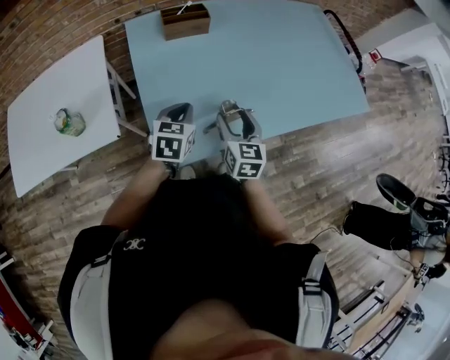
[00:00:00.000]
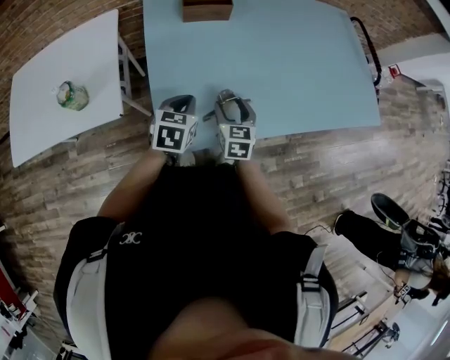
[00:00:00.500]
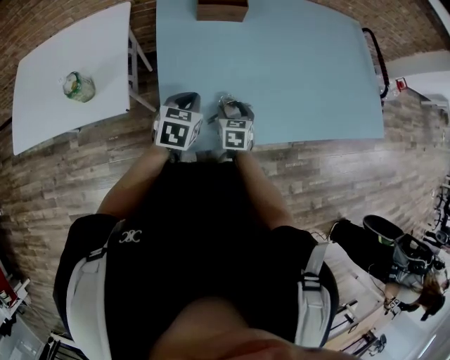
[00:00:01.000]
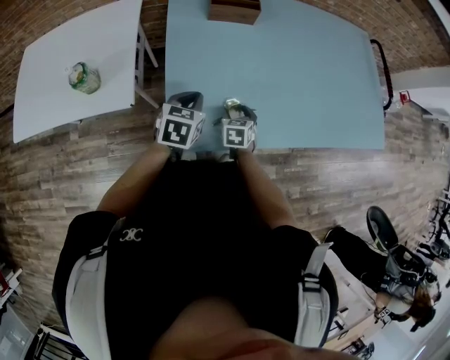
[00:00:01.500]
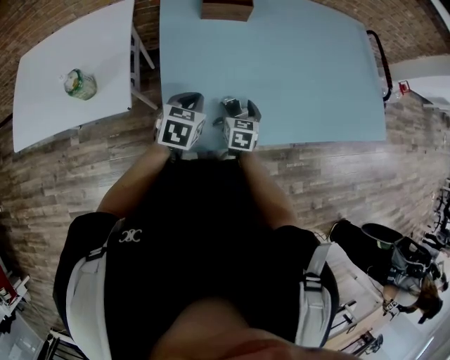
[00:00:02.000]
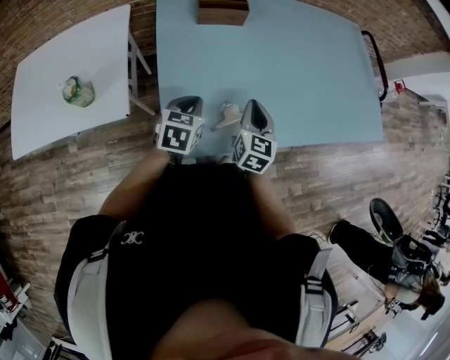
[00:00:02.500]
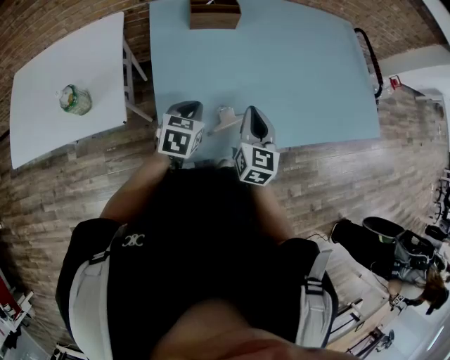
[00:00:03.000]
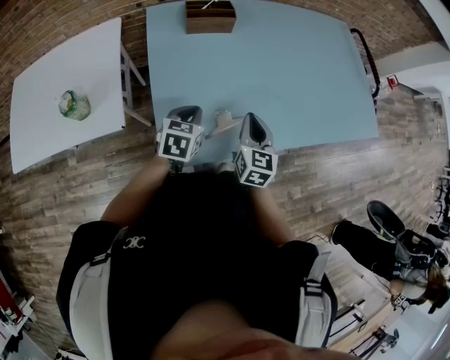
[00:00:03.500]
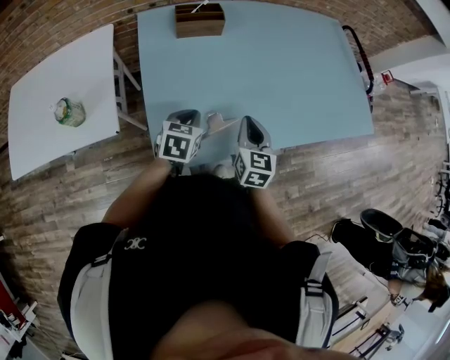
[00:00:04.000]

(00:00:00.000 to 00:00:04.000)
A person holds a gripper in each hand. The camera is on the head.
00:00:00.000 - 00:00:02.000: The right gripper heads downward, covering approximately 15 cm, while the left gripper moves roughly 5 cm.
00:00:02.000 - 00:00:04.000: The right gripper shifts roughly 15 cm upward and to the right, and closes up.

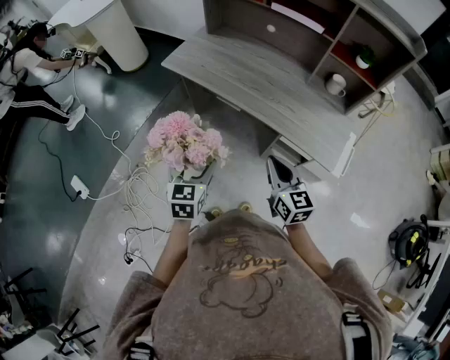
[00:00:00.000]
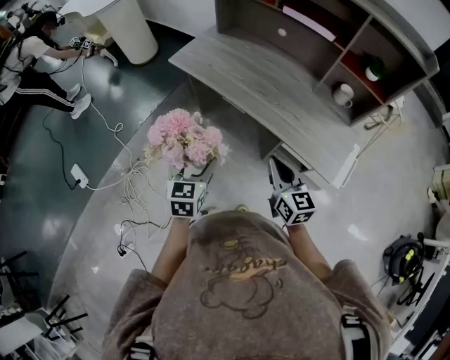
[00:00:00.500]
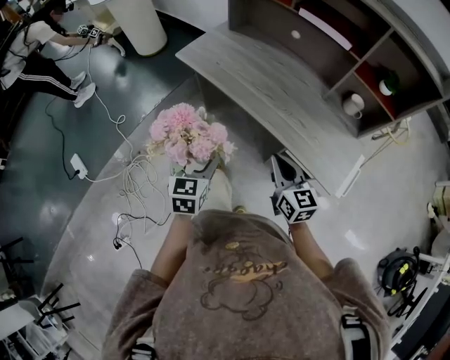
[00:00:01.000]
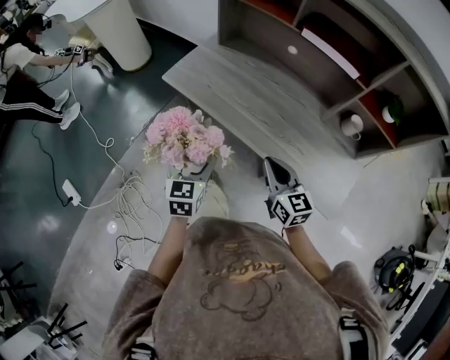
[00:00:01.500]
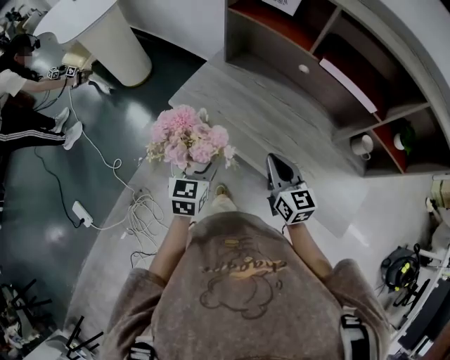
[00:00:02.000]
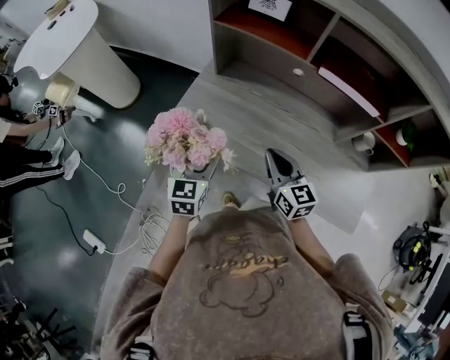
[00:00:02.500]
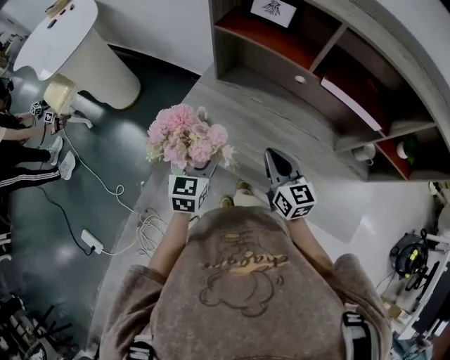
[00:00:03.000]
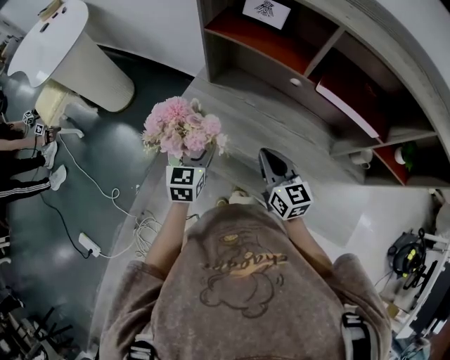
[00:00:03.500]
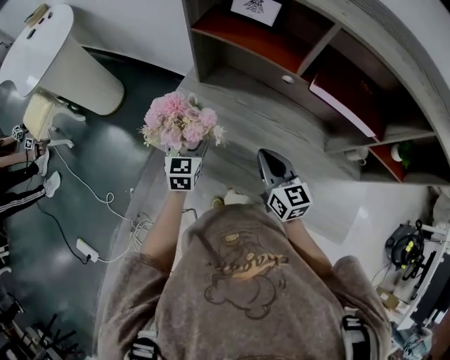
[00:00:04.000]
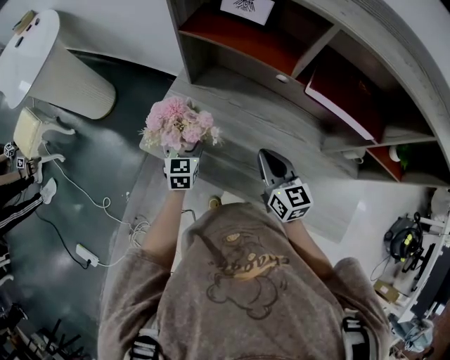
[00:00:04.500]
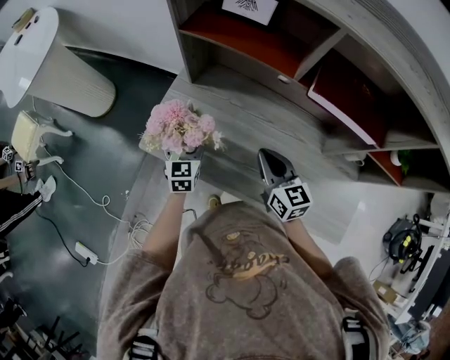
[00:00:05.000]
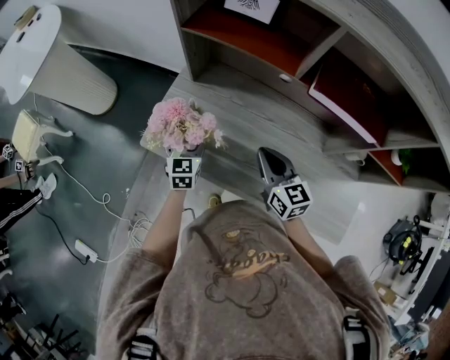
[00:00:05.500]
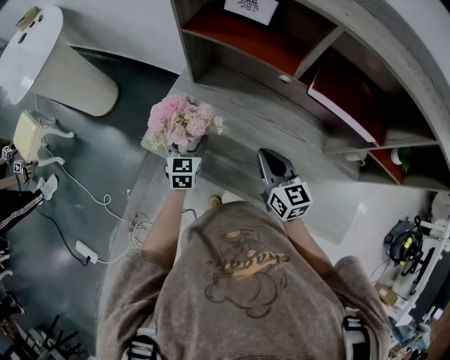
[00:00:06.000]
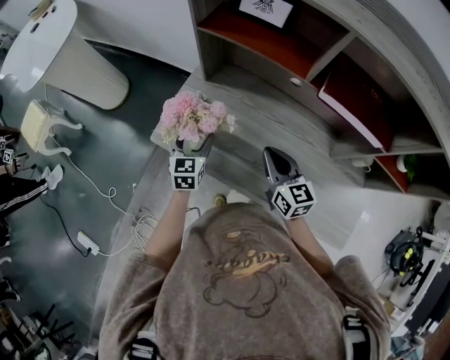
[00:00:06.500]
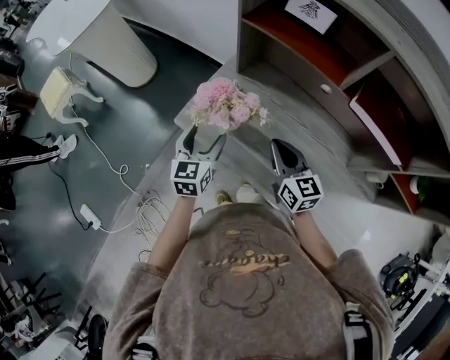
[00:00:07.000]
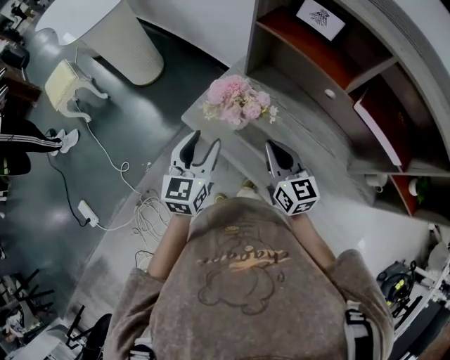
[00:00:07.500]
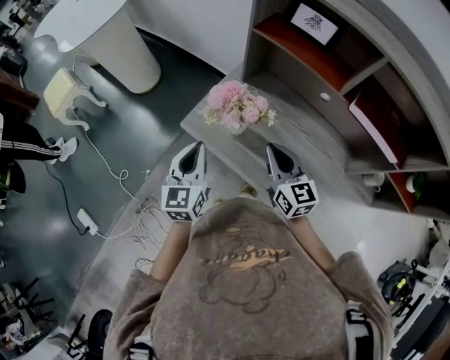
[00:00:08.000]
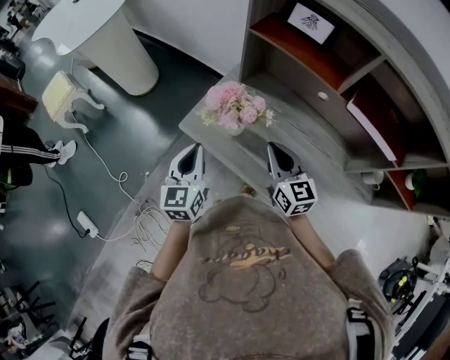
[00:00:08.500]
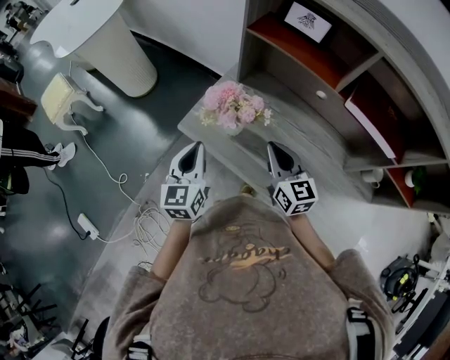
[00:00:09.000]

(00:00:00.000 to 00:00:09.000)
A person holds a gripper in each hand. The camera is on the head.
00:00:00.000 - 00:00:02.000: The grippers both shift forward by approximately 30 cm.
00:00:02.000 - 00:00:04.500: The right gripper goes approximately 15 cm forward; the left gripper heads forward, covering approximately 25 cm.
00:00:04.500 - 00:00:07.000: The left gripper is displaced upward, backward and to the left by about 10 cm, while the right gripper shifts about 5 cm to the left.
00:00:07.000 - 00:00:09.000: The left gripper travels upward, backward and to the left by about 10 cm, and closes up.

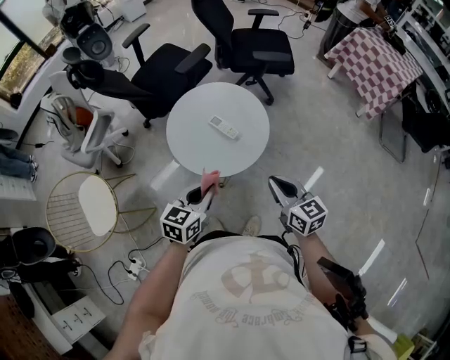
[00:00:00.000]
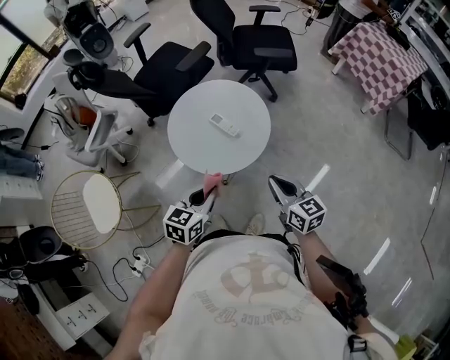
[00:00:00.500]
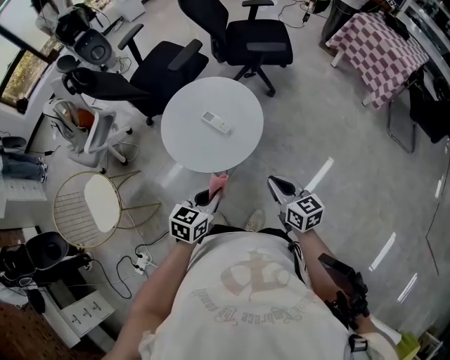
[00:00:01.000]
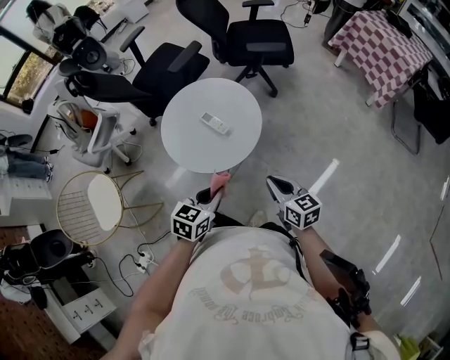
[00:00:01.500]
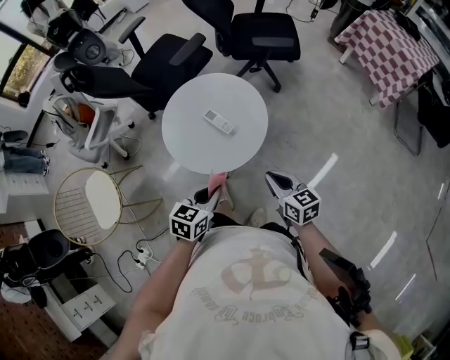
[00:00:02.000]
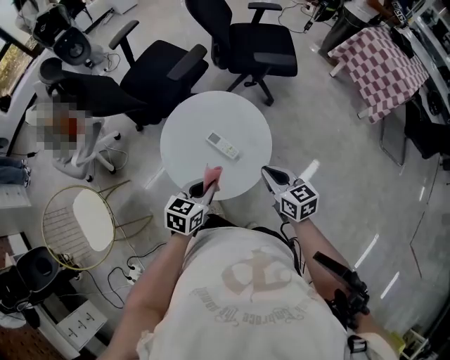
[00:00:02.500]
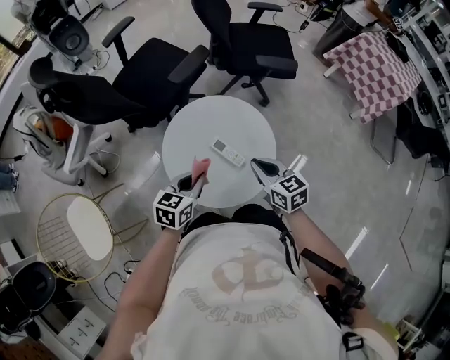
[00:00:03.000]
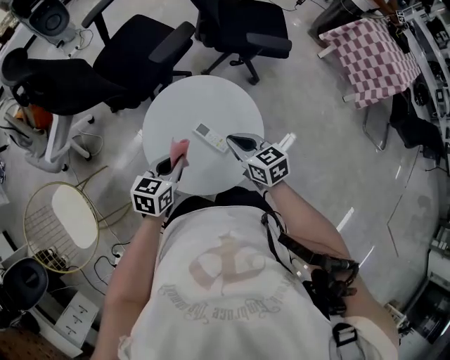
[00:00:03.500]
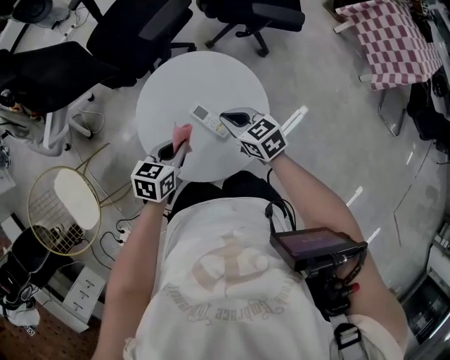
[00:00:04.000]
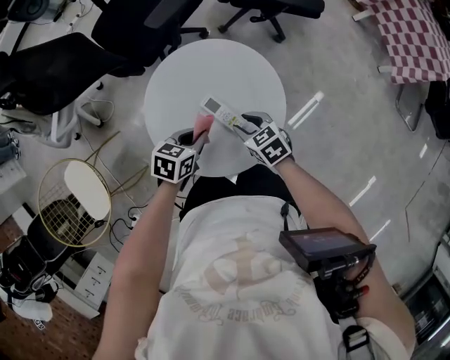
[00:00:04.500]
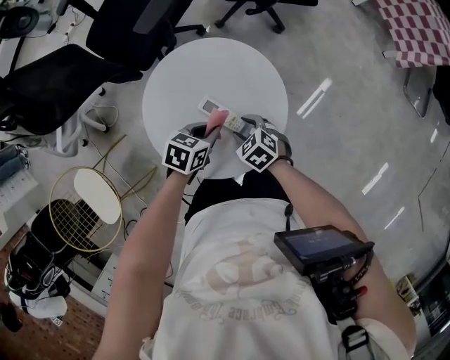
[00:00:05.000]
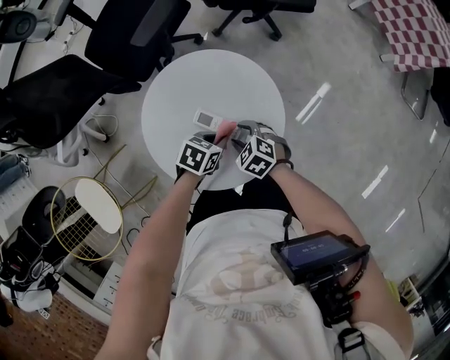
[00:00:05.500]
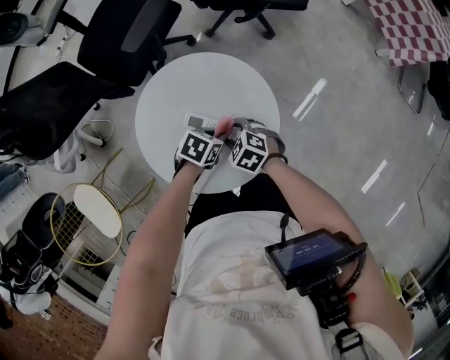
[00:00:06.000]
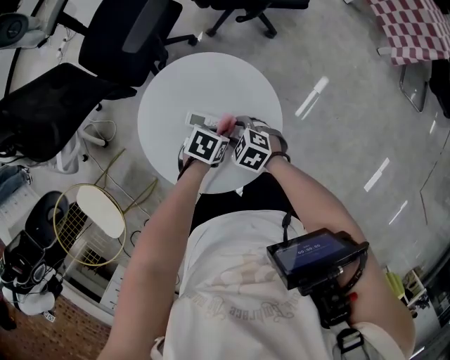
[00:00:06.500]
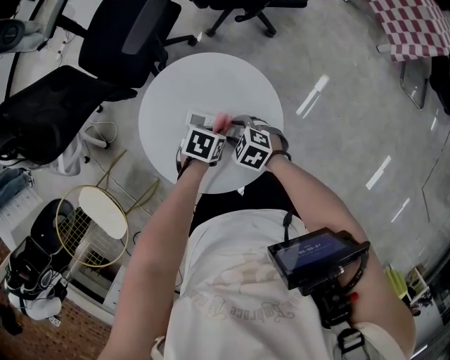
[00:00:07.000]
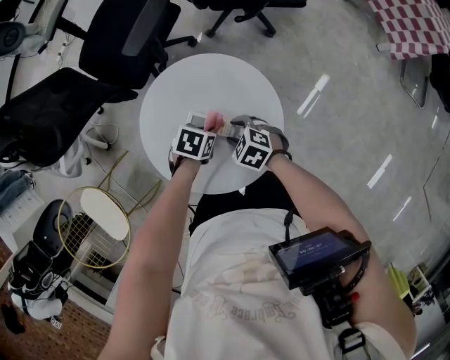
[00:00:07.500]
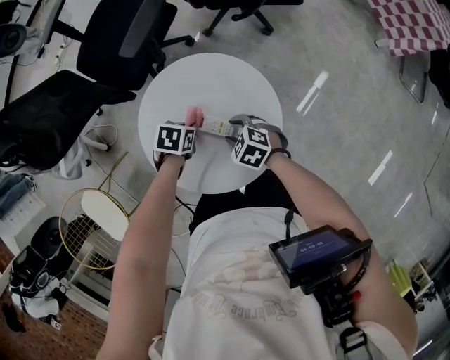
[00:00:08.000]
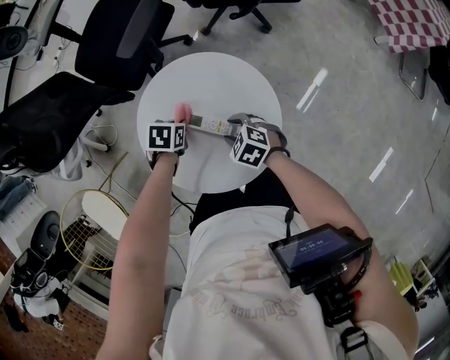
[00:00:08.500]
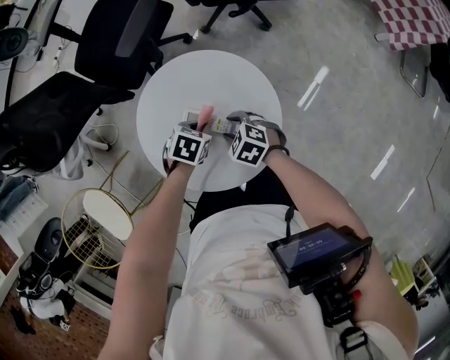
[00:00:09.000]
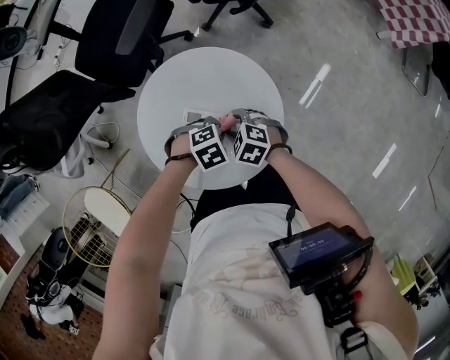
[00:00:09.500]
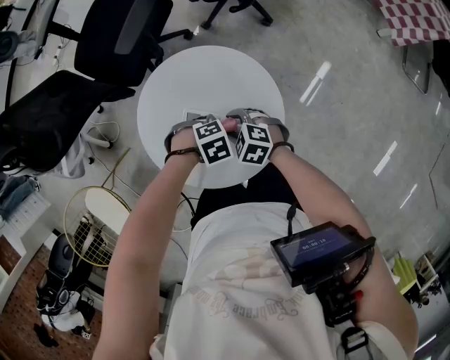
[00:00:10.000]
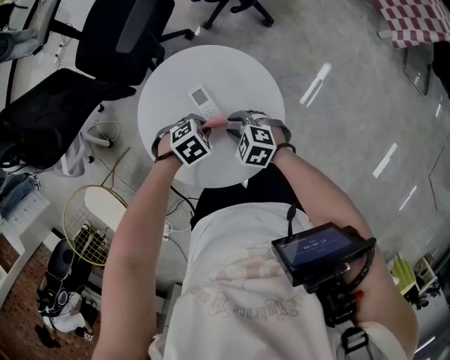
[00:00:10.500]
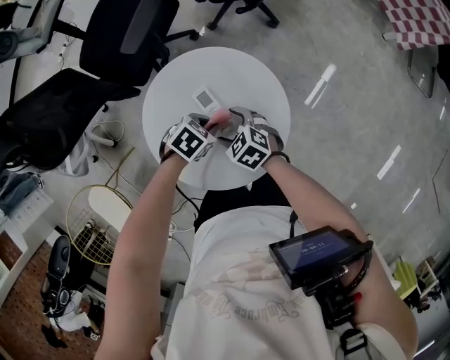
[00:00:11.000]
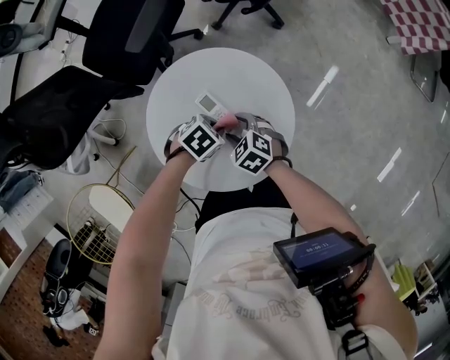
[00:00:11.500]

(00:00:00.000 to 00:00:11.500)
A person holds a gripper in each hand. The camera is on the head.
00:00:00.000 - 00:00:02.000: The right gripper is displaced downward by some 10 cm, while the left gripper is displaced to the right and downward by some 10 cm.
00:00:02.000 - 00:00:04.000: The grippers both shift forward and to the left by about 30 cm. The right gripper turns by approximately 20 degrees.
00:00:04.000 - 00:00:06.000: Both grippers move downward, some 15 cm. The left gripper swivels some 40 degrees, while the right gripper rotates some 30 degrees, and opens.
00:00:06.000 - 00:00:07.500: The left gripper ends up approximately 5 cm from where it was.
00:00:07.500 - 00:00:09.500: The left gripper shifts by some 5 cm, and rotates around the line of its fingers by approximately 50 degrees, clockwise from behind.
00:00:09.500 - 00:00:11.500: The left gripper swivels about 20 degrees.

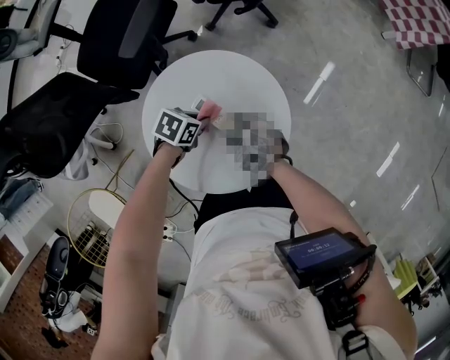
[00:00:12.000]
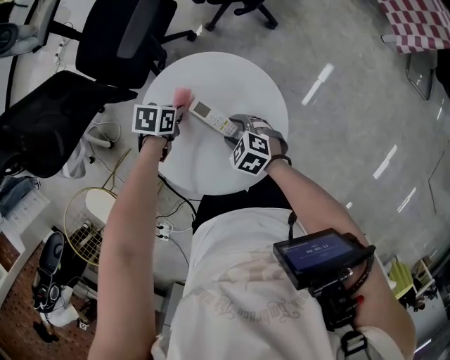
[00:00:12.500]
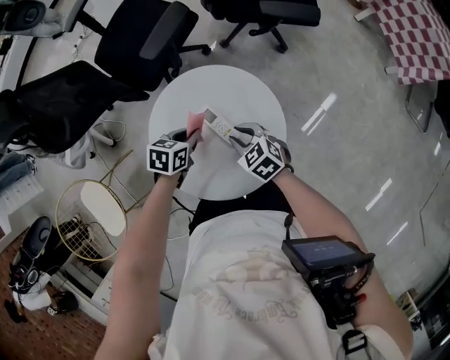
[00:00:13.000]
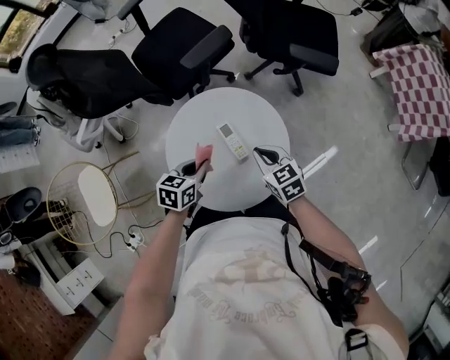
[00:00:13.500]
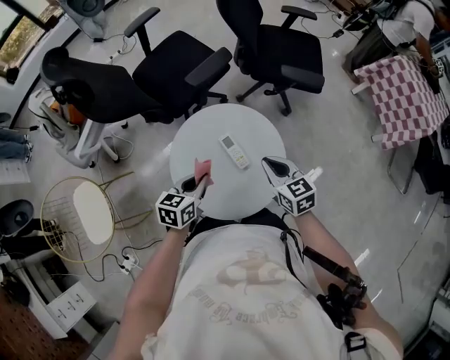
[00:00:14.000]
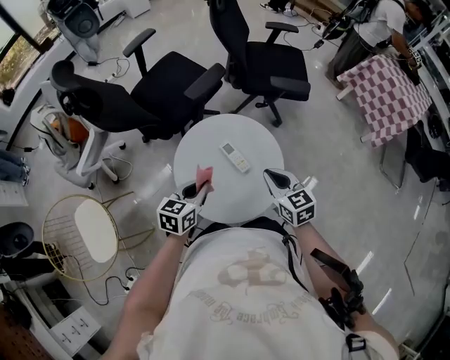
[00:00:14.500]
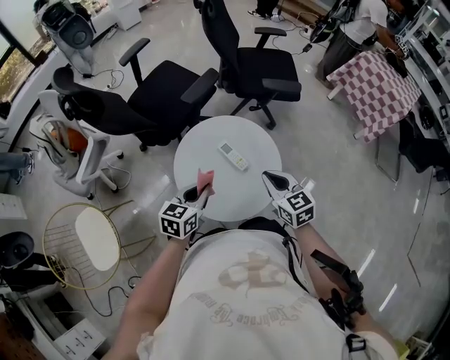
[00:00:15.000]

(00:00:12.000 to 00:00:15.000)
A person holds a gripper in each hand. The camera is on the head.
00:00:12.000 - 00:00:13.500: The two grippers go approximately 10 cm upward. The left gripper turns by some 50 degrees, while the right gripper changes its angle by approximately 20 degrees, and closes.
00:00:13.500 - 00:00:15.000: Both grippers move upward and backward, roughly 15 cm. The right gripper rotates approximately 20 degrees. The left gripper rotates approximately 20 degrees.
